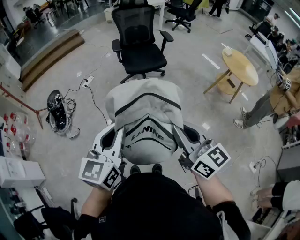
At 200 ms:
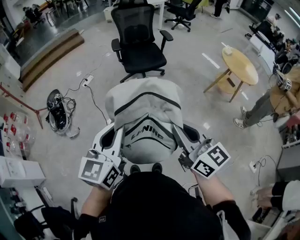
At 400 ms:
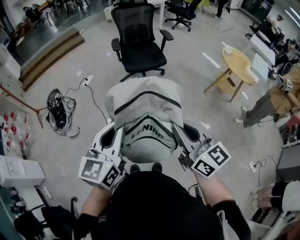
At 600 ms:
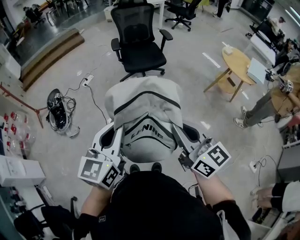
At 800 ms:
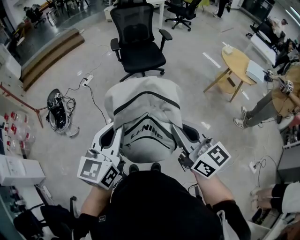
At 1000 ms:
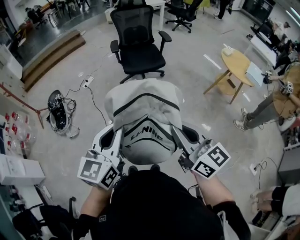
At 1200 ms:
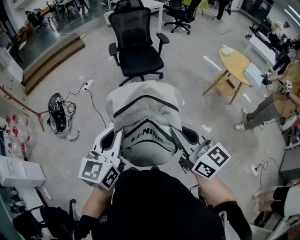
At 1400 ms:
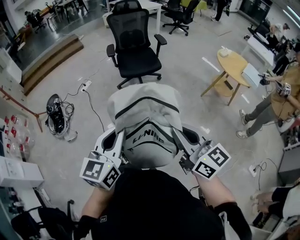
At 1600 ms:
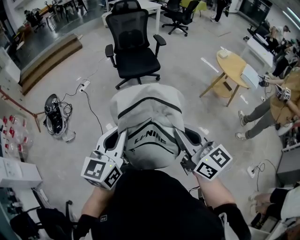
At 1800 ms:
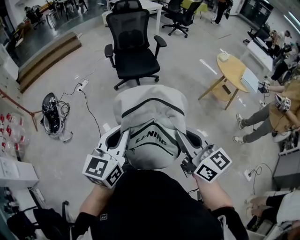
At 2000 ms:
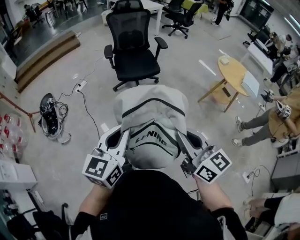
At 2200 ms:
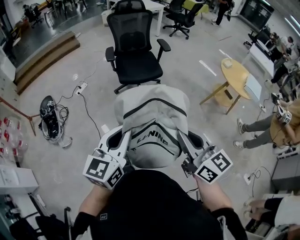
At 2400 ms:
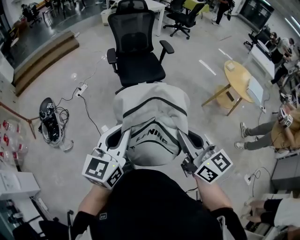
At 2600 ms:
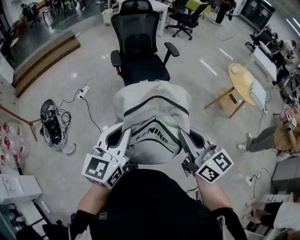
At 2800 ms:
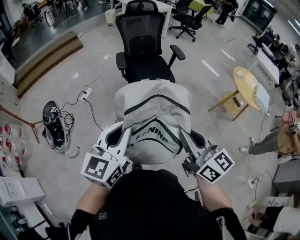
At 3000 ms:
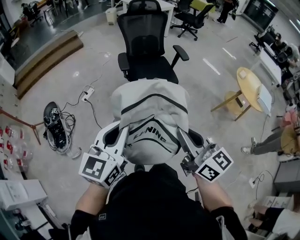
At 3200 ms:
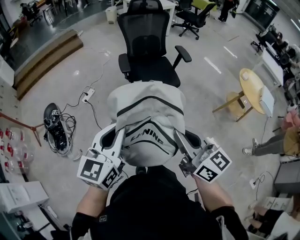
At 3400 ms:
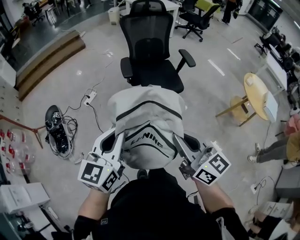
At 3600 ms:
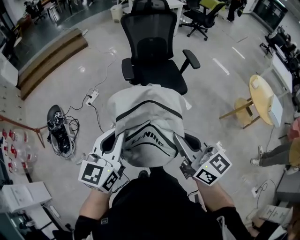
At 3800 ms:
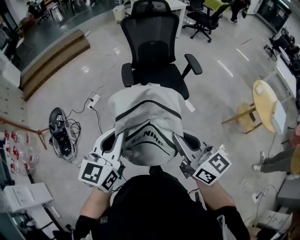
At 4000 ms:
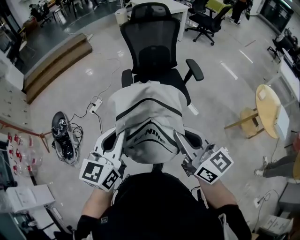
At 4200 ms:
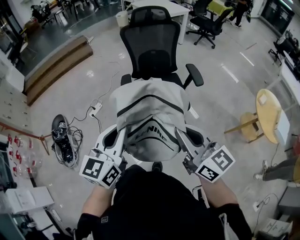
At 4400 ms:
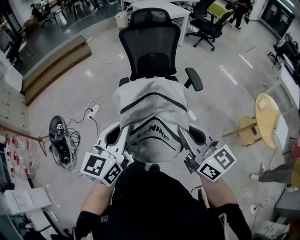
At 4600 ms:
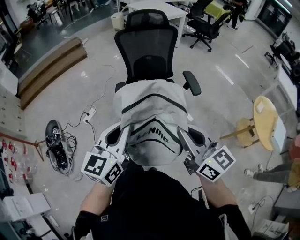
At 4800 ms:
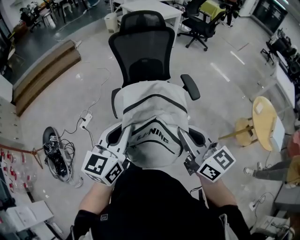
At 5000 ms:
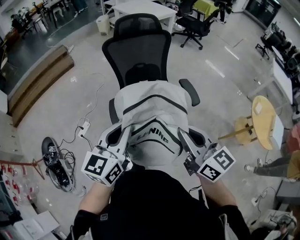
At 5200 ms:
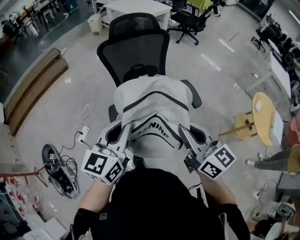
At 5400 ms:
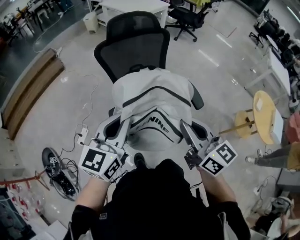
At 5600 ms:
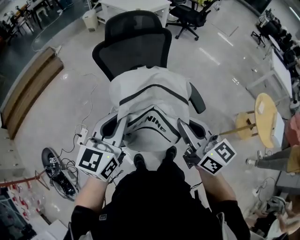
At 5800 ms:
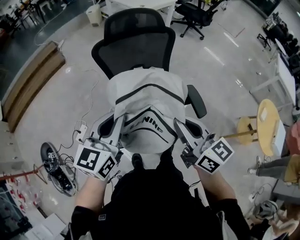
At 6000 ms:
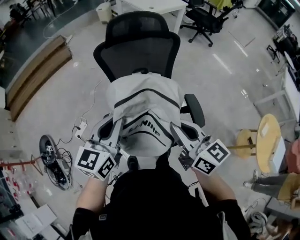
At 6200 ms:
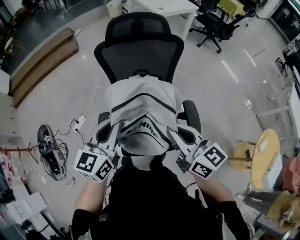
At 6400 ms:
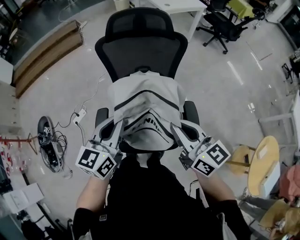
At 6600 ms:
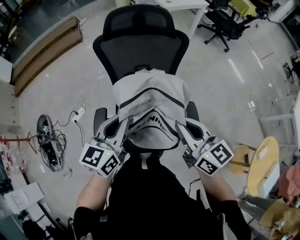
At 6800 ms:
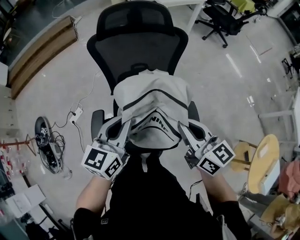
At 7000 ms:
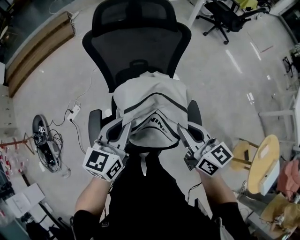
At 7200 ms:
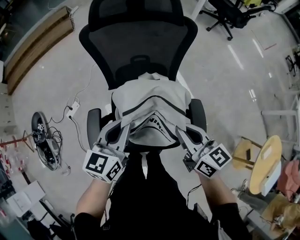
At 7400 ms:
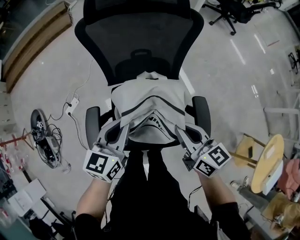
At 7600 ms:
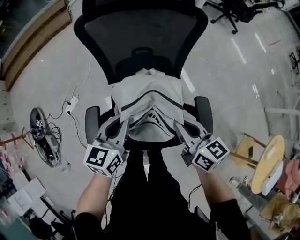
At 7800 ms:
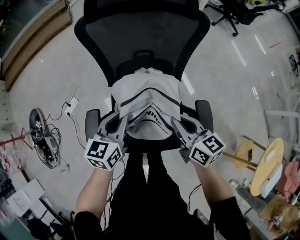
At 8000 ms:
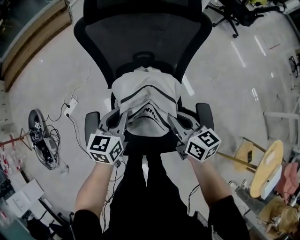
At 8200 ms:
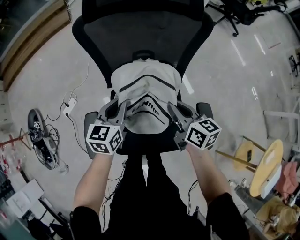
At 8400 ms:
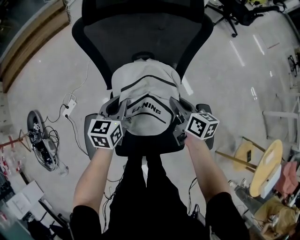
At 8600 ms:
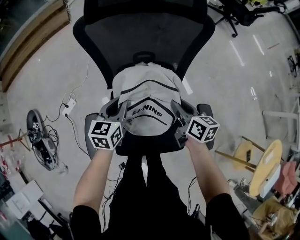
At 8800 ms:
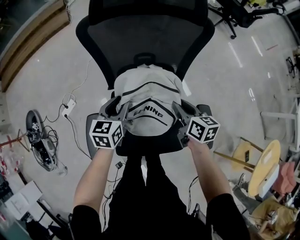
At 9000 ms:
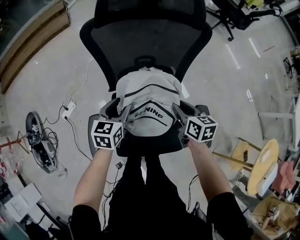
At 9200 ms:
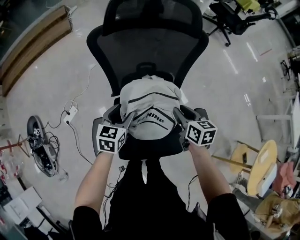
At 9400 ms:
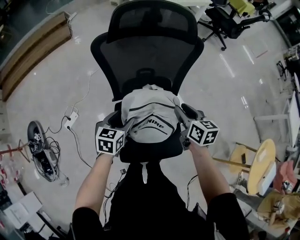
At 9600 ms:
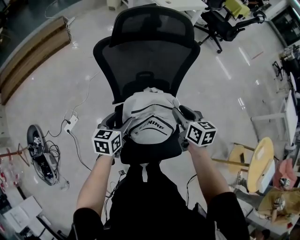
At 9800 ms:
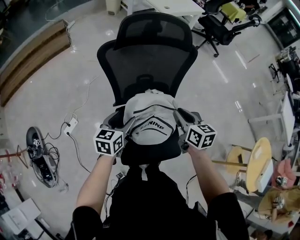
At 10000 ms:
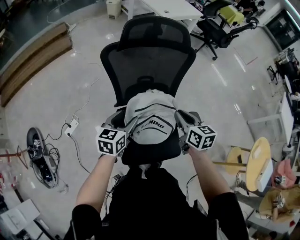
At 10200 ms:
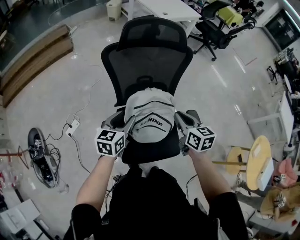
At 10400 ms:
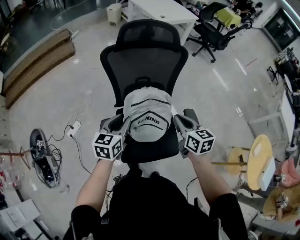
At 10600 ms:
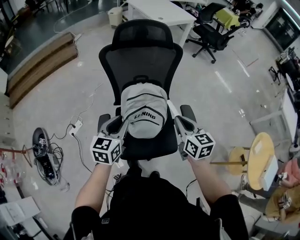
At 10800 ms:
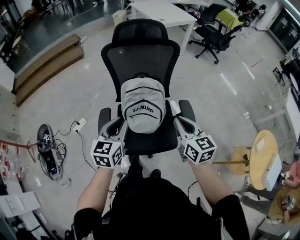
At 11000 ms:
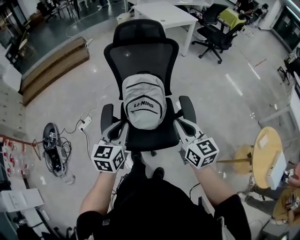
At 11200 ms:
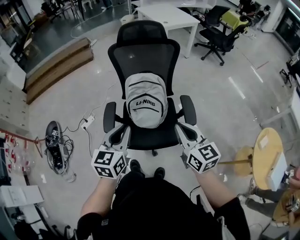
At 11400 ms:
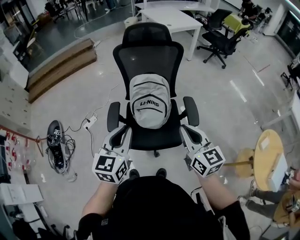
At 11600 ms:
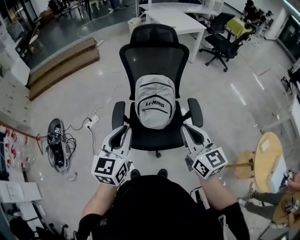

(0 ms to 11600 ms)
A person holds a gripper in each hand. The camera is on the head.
0 ms - 1400 ms: Both grippers move to the right, some 10 cm.
1400 ms - 2800 ms: The grippers both shift forward and to the left by about 30 cm.
2800 ms - 4400 ms: The two grippers go approximately 40 cm forward.
4400 ms - 5800 ms: The two grippers go some 40 cm forward.
5800 ms - 7200 ms: The grippers both shift downward, to the right and forward by approximately 25 cm.
7200 ms - 8800 ms: The two grippers go about 20 cm downward and forward. The left gripper opens. Meanwhile the right gripper rotates some 20 degrees.
8800 ms - 10200 ms: Both grippers travel together upward and backward, roughly 20 cm.
10200 ms - 11600 ms: Both grippers move backward and upward, approximately 35 cm. The right gripper changes its angle by roughly 30 degrees. Meanwhile the left gripper changes its angle by about 20 degrees, and closes.

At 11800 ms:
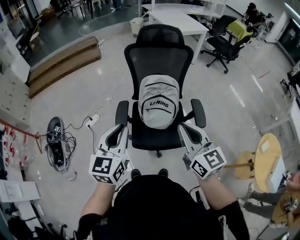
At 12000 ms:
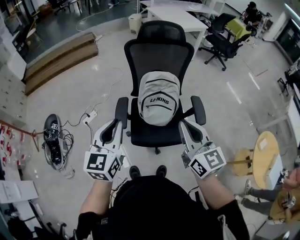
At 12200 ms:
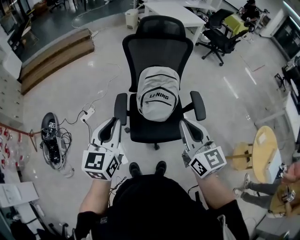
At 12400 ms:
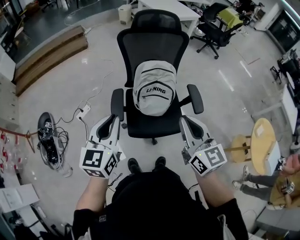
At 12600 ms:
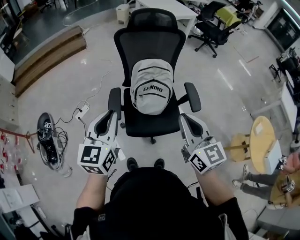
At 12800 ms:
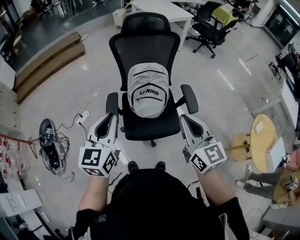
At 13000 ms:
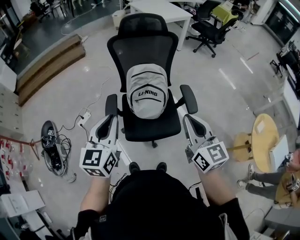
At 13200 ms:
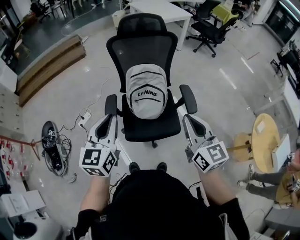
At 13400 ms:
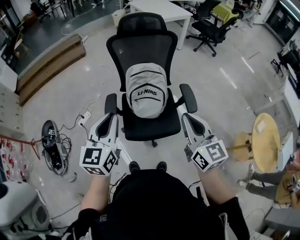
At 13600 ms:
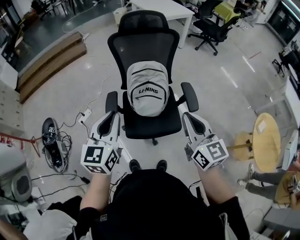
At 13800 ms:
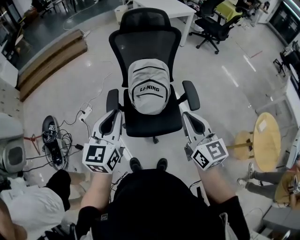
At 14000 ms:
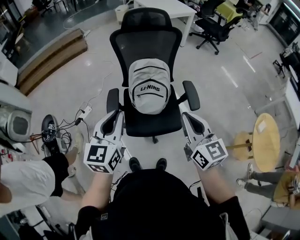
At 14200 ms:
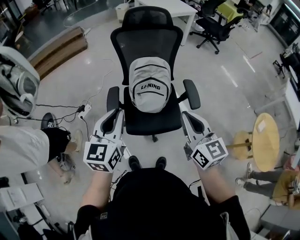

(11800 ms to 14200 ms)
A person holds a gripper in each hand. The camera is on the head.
11800 ms - 13000 ms: The right gripper moves to the right, about 5 cm.
13000 ms - 14200 ms: The grippers make only small movements.

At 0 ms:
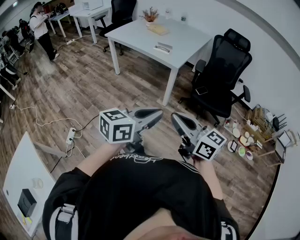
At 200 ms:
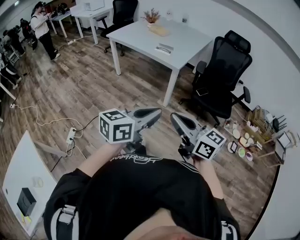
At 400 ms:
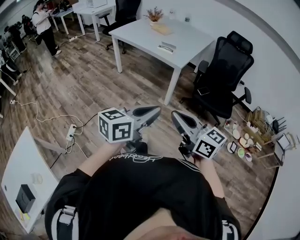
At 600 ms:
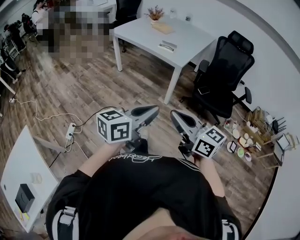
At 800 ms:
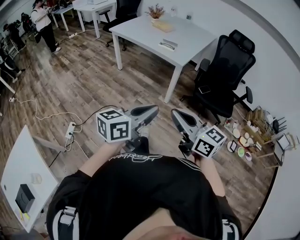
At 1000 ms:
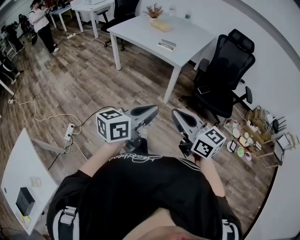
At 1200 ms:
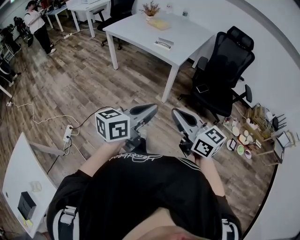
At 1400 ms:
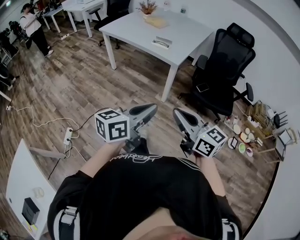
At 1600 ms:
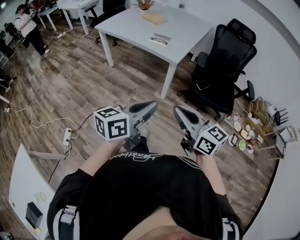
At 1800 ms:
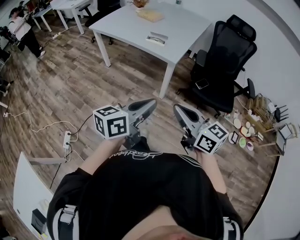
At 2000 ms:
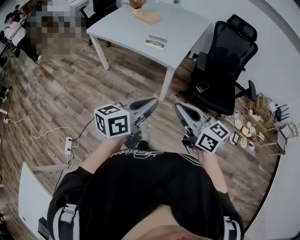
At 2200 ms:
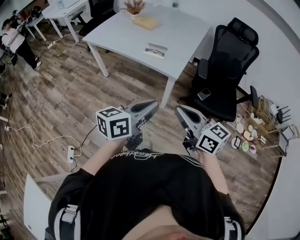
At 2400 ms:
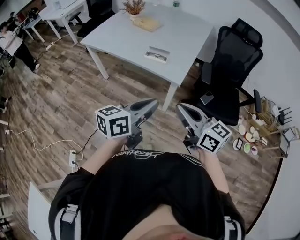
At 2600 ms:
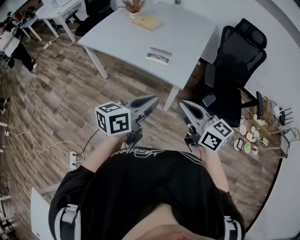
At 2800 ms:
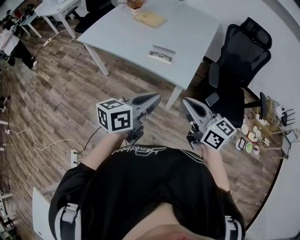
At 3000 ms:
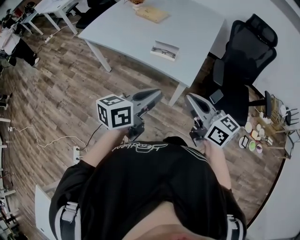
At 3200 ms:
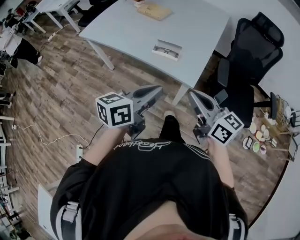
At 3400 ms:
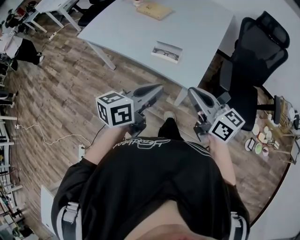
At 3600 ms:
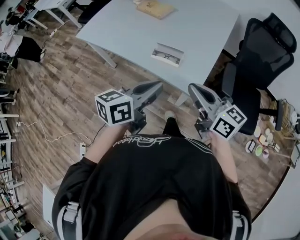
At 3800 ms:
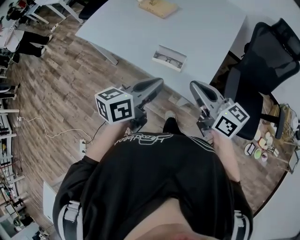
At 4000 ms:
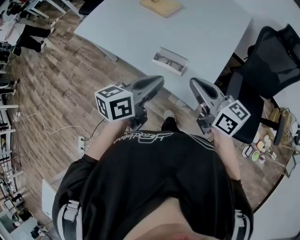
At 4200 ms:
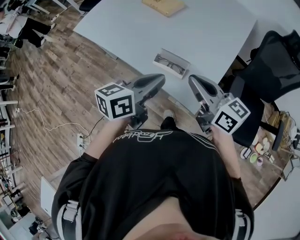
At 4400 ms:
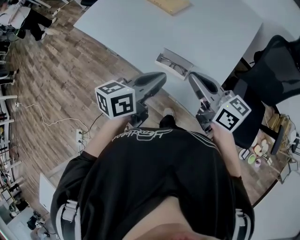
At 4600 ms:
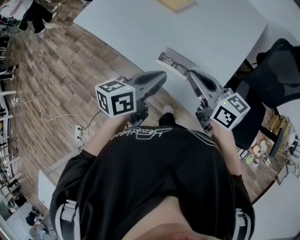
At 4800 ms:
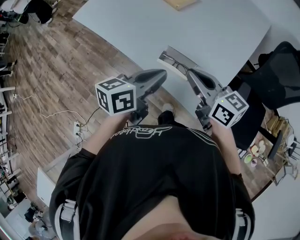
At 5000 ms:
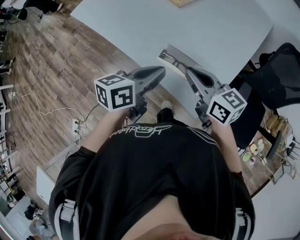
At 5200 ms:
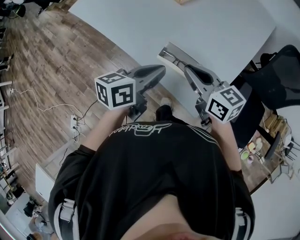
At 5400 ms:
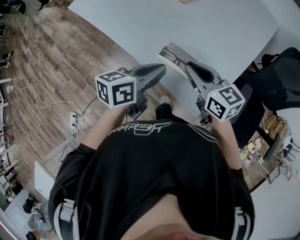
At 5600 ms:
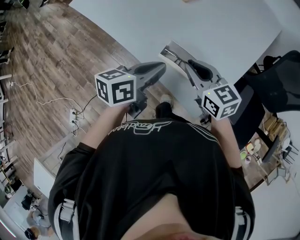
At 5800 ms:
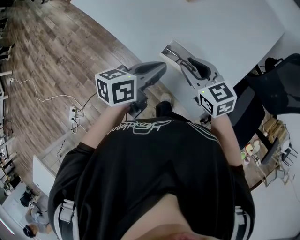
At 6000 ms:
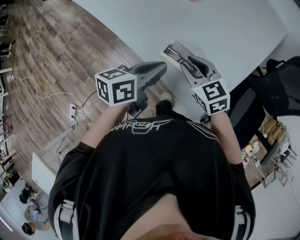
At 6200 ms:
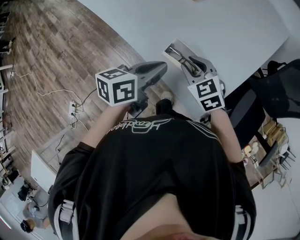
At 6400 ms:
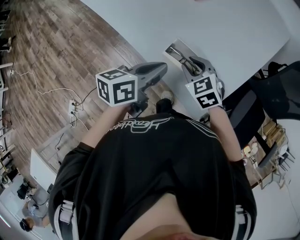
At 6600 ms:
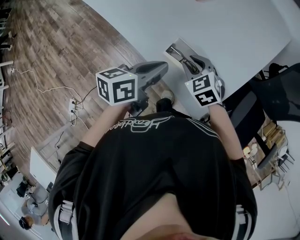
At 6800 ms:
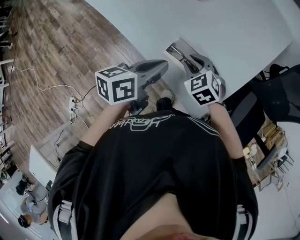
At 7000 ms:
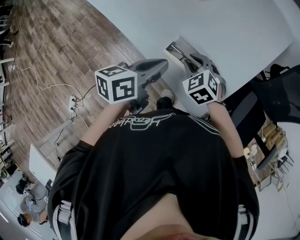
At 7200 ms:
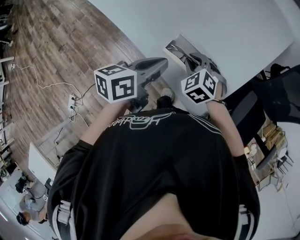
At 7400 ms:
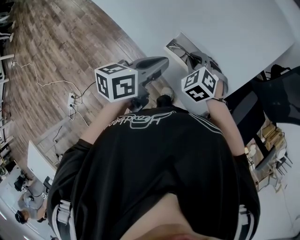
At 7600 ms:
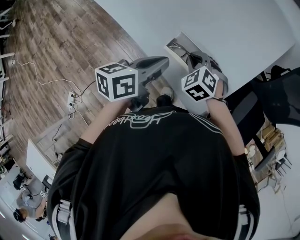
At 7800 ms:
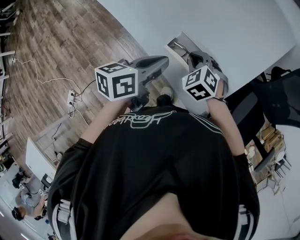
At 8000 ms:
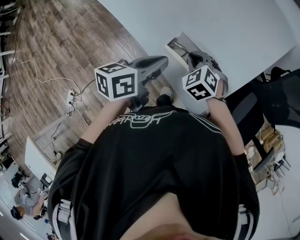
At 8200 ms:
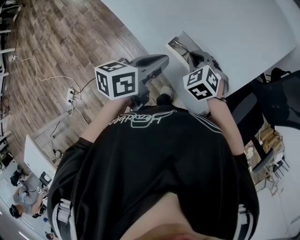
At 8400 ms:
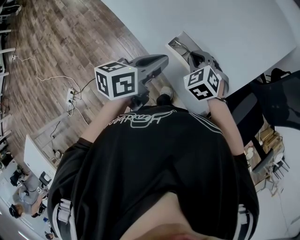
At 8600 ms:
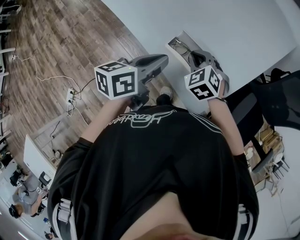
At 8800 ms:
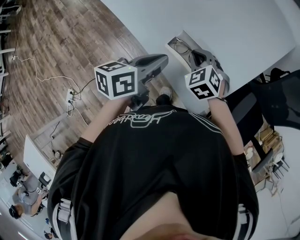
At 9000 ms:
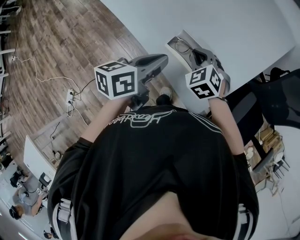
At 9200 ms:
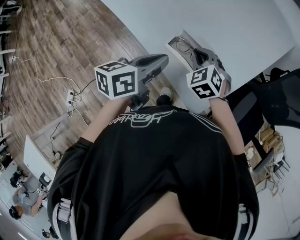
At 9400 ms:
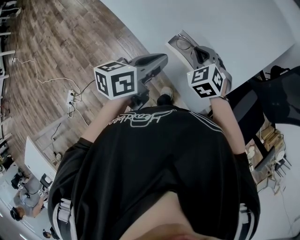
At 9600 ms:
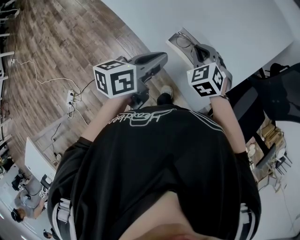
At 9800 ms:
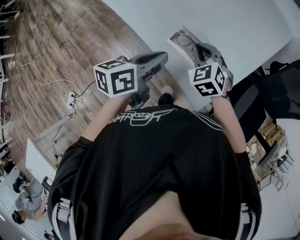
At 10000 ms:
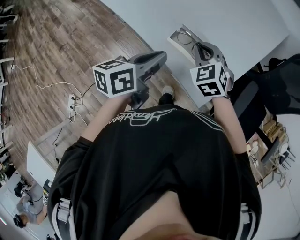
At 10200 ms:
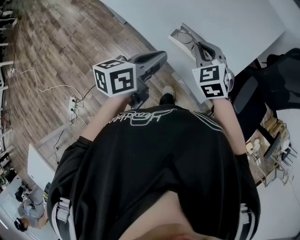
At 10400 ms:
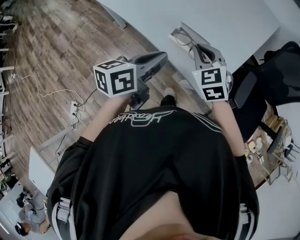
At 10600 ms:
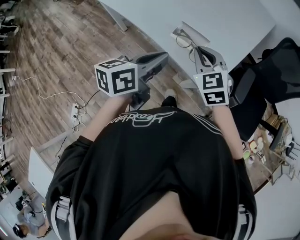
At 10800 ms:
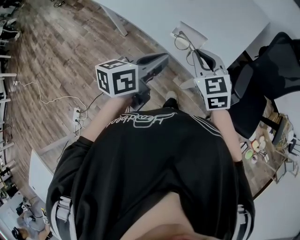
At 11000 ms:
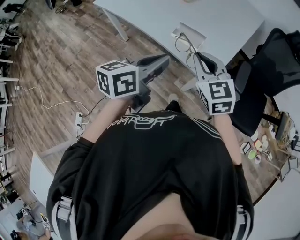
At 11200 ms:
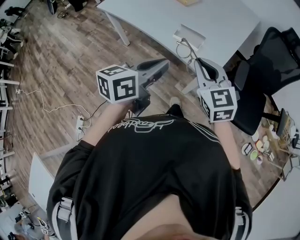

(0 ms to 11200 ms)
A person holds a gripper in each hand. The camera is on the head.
0 ms - 1600 ms: The two grippers go roughly 10 cm forward.
1600 ms - 3200 ms: The grippers both shift forward by some 40 cm.
3200 ms - 4800 ms: Both grippers move forward, about 30 cm.
4800 ms - 6400 ms: The right gripper heads downward, covering some 15 cm, tilts its fingers some 40 degrees downward, and opens up. Meanwhile the left gripper shifts some 5 cm downward.
8000 ms - 9600 ms: There are only small adjustments of the grippers.
9600 ms - 11200 ms: The two grippers go about 30 cm backward and upward. The left gripper changes its angle by roughly 20 degrees. The right gripper turns by about 40 degrees.
